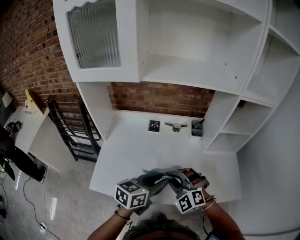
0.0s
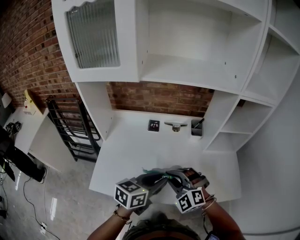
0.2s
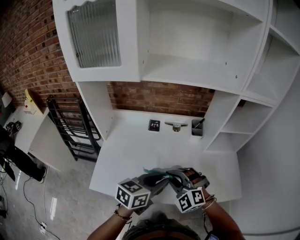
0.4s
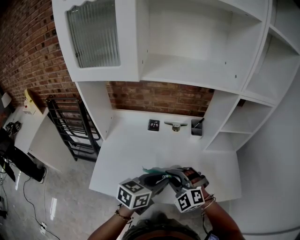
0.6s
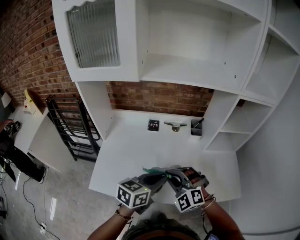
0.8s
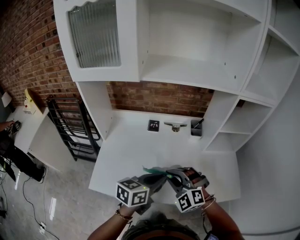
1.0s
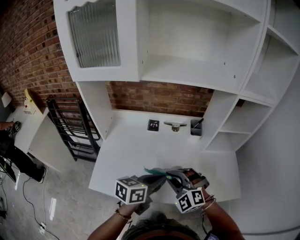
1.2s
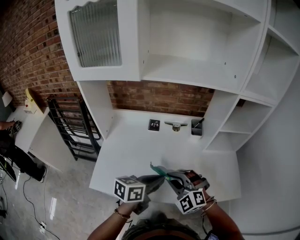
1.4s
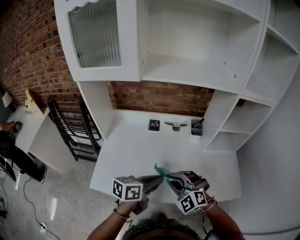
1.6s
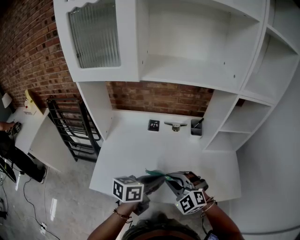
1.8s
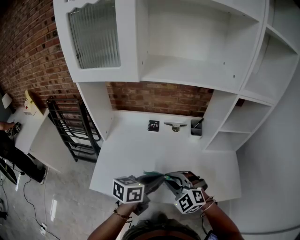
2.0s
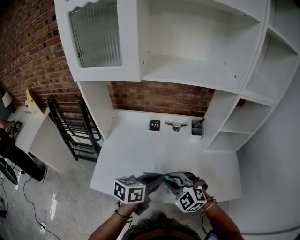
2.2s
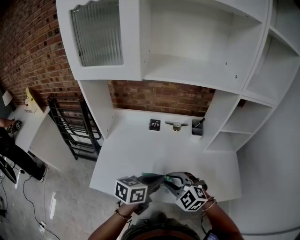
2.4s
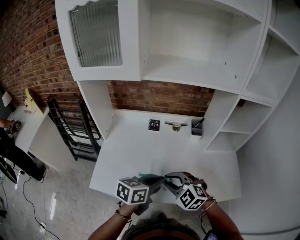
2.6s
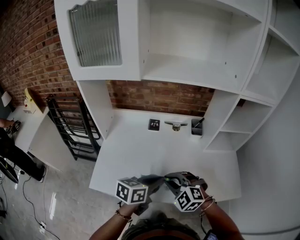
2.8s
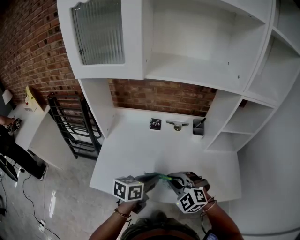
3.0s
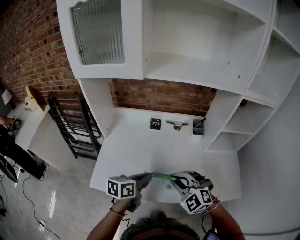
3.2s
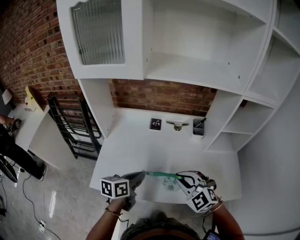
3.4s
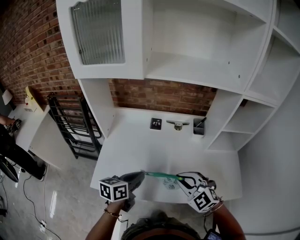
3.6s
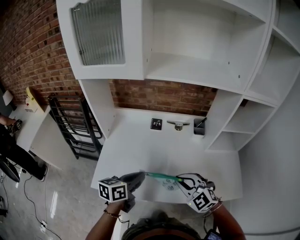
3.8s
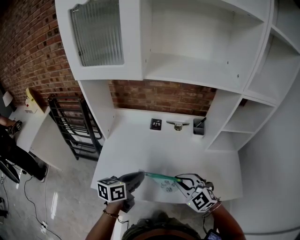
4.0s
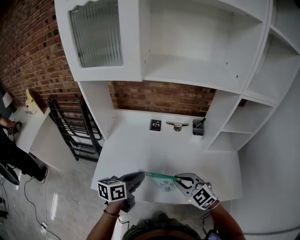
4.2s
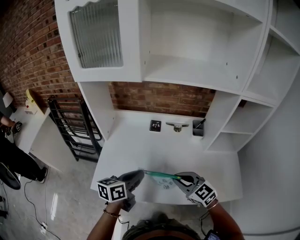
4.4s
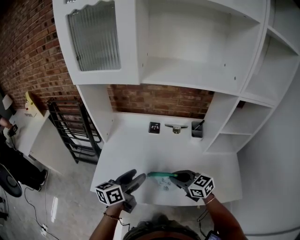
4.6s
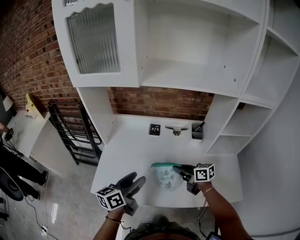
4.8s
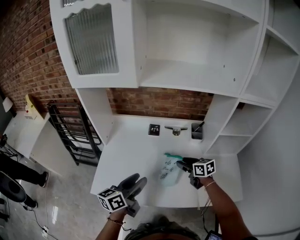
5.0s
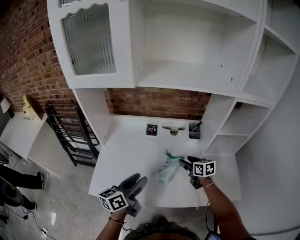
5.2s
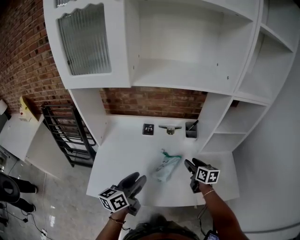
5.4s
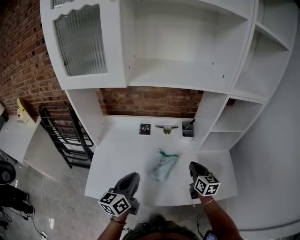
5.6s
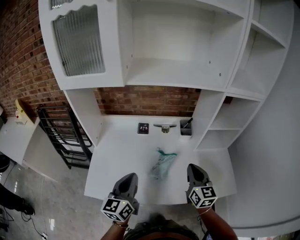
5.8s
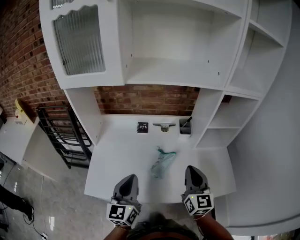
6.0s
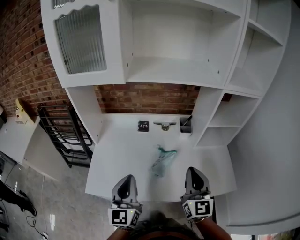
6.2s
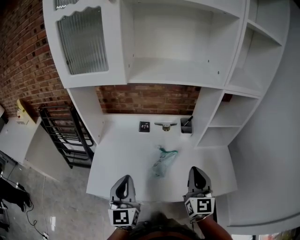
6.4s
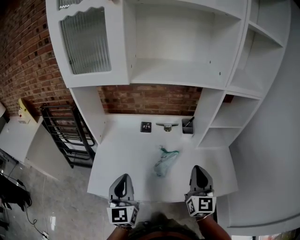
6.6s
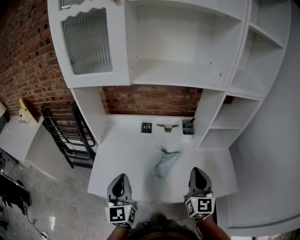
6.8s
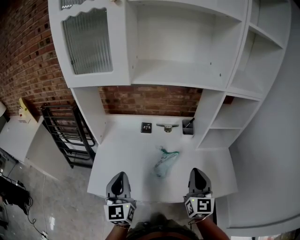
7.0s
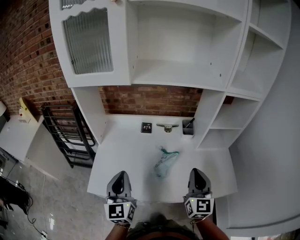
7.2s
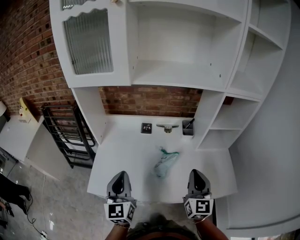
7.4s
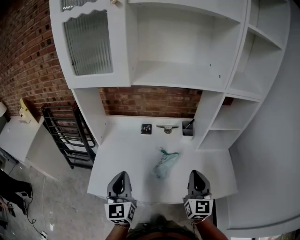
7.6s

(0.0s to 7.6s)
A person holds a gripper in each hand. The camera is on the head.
0.0s - 1.6s: The grippers move only a little.
1.6s - 3.0s: The grippers move only a little.
3.0s - 4.6s: The left gripper moves to the left, approximately 10 cm, and opens, while the right gripper changes place by approximately 5 cm, and rolls clockwise, seen from behind, by roughly 50 degrees.
4.6s - 6.0s: The right gripper is displaced upward and to the right by approximately 15 cm, rotates roughly 60 degrees, and opens, then closes once more, while the left gripper is displaced upward by approximately 5 cm, rotates about 40 degrees, and closes up.
6.0s - 7.6s: The left gripper ends up about 5 cm from where it was.

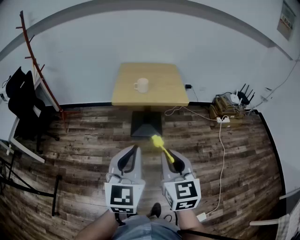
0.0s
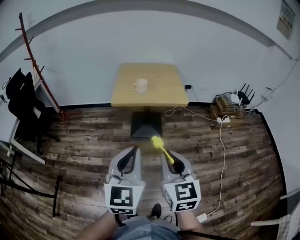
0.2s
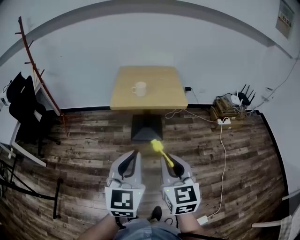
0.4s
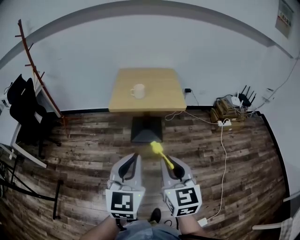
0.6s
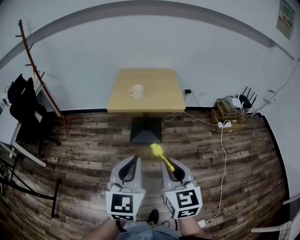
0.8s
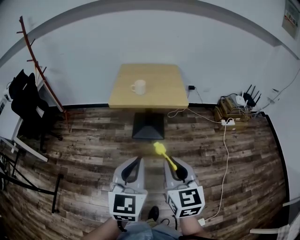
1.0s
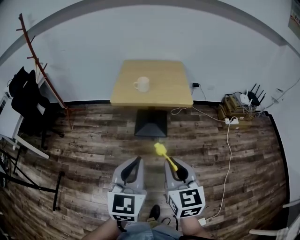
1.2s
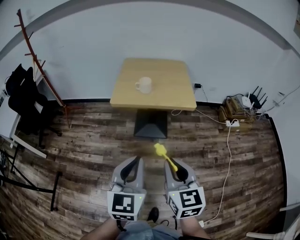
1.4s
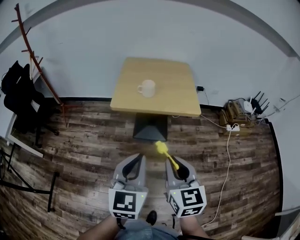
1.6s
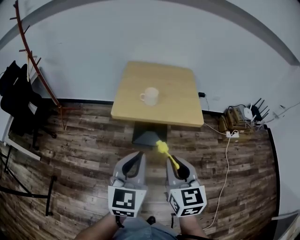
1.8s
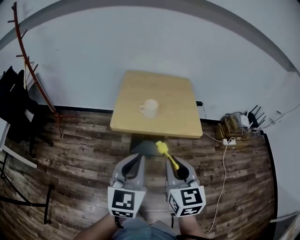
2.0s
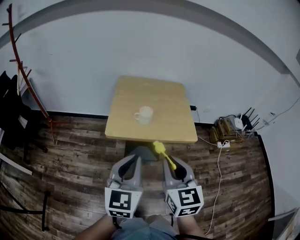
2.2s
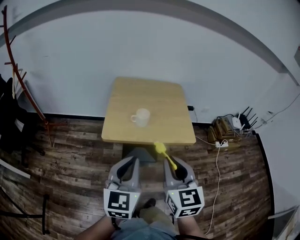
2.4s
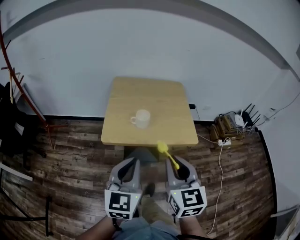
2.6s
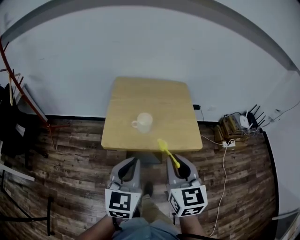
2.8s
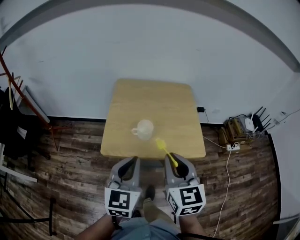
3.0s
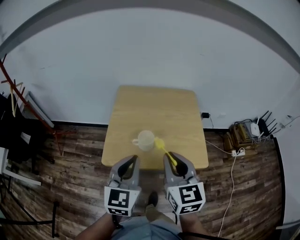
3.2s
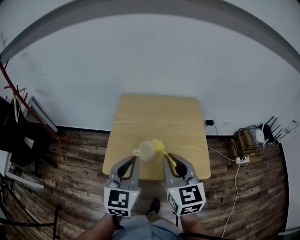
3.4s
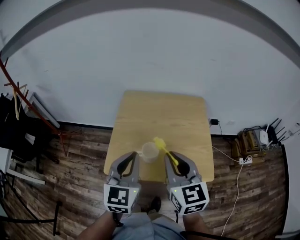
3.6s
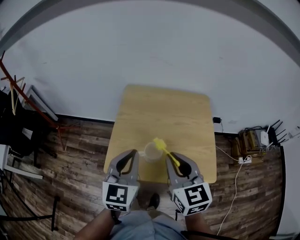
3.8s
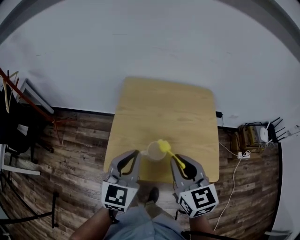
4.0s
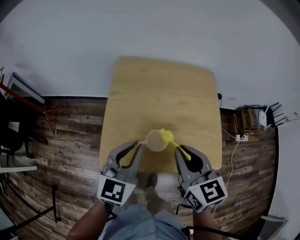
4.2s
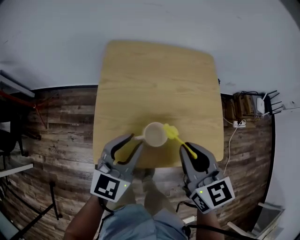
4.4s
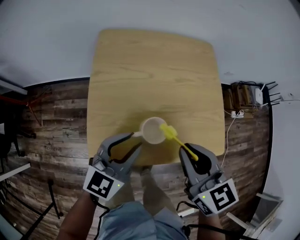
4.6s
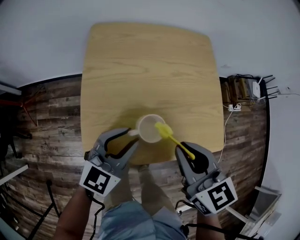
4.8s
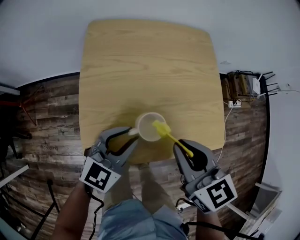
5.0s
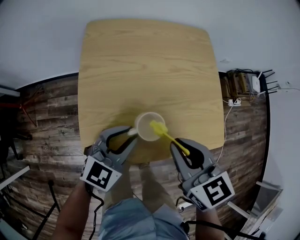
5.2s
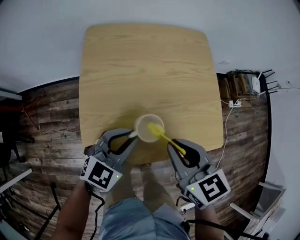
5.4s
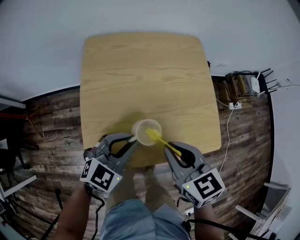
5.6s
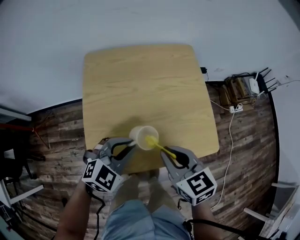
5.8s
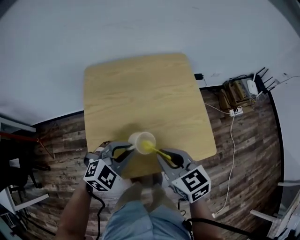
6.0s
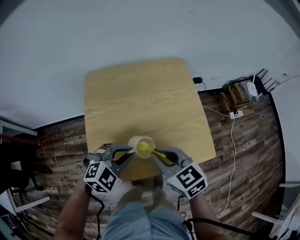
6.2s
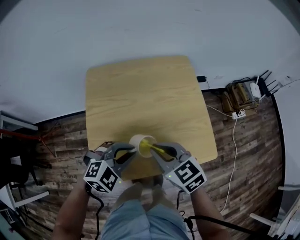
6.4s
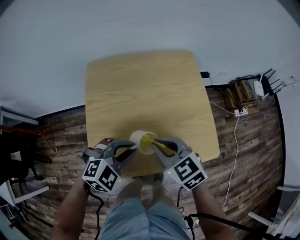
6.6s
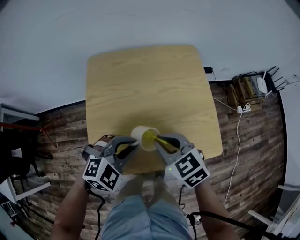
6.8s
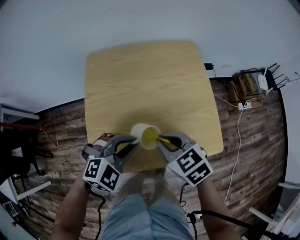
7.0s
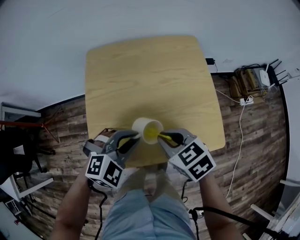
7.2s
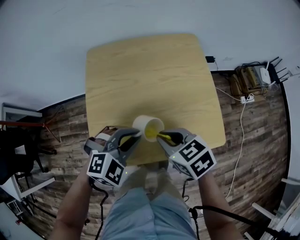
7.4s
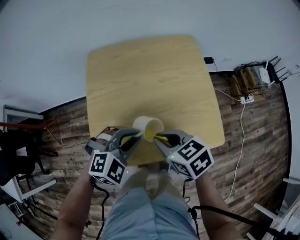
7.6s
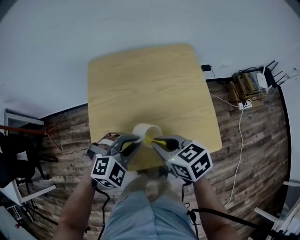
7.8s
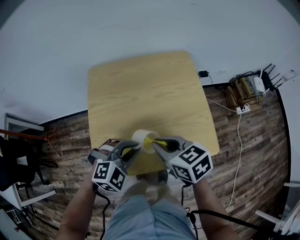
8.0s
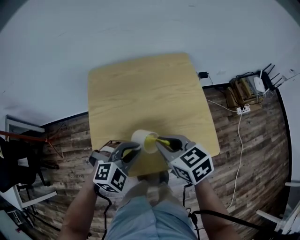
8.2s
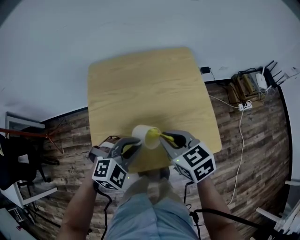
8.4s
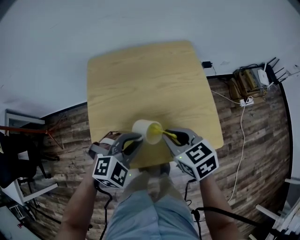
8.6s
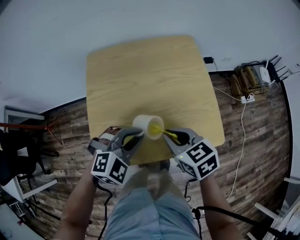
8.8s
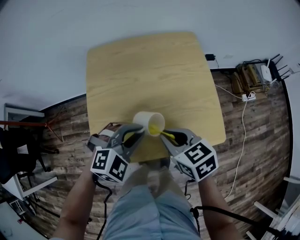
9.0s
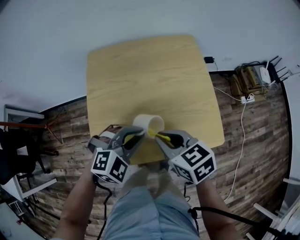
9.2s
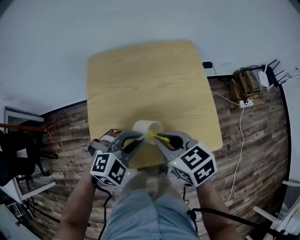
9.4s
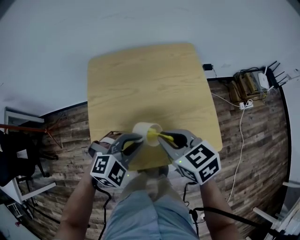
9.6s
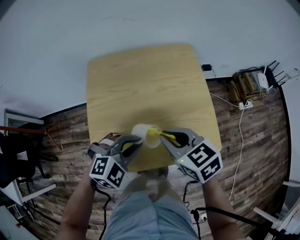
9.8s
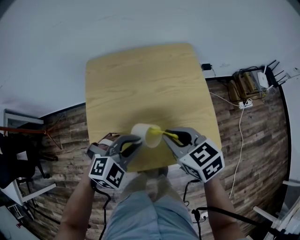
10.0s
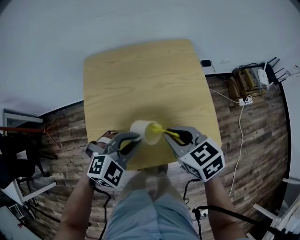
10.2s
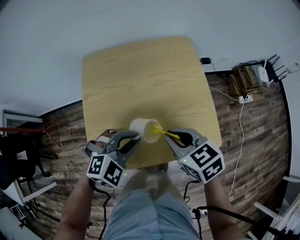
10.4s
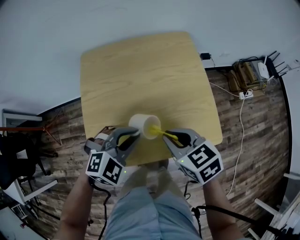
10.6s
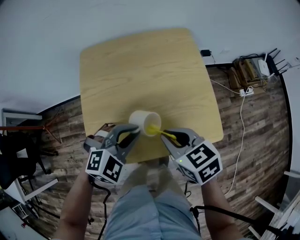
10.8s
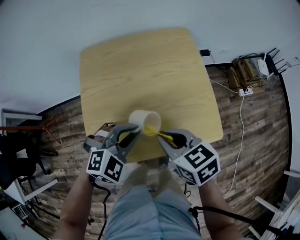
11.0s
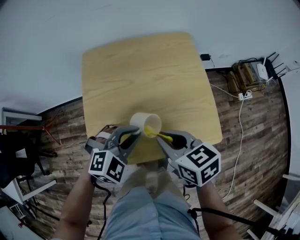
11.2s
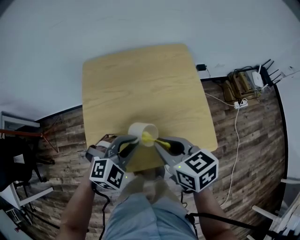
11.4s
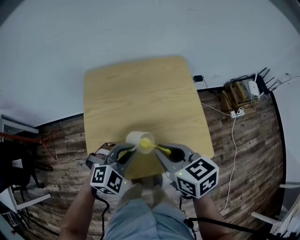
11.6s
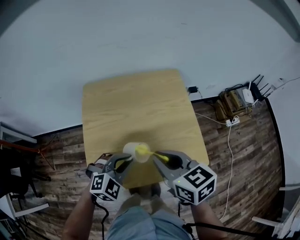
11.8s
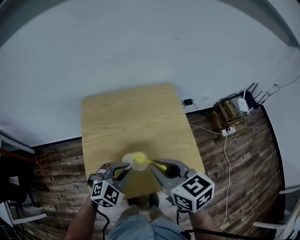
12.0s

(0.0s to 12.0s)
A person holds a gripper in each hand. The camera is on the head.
0.0s - 1.6s: The left gripper heads forward and downward, covering about 15 cm. The right gripper is displaced forward by approximately 15 cm.
1.6s - 3.0s: Both grippers travel together forward, some 30 cm.
3.0s - 4.4s: The grippers both shift forward and downward by some 20 cm. The left gripper opens up.
4.4s - 6.0s: The grippers both shift downward by some 5 cm. The left gripper rotates some 50 degrees.
7.6s - 9.0s: There are only small adjustments of the grippers.
9.0s - 10.4s: The grippers make only small movements.
10.4s - 12.0s: The right gripper shifts approximately 10 cm upward.

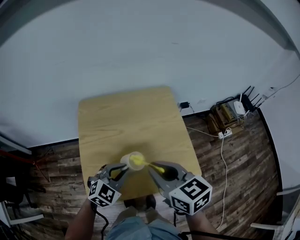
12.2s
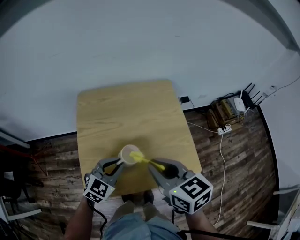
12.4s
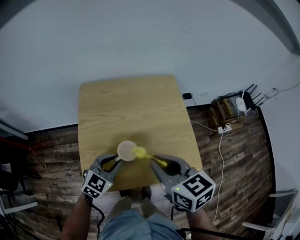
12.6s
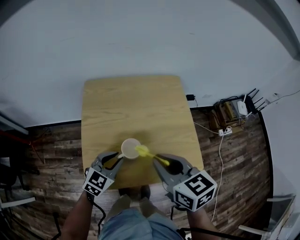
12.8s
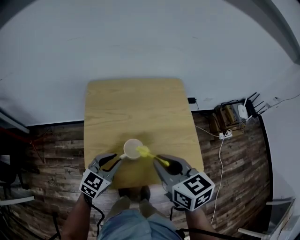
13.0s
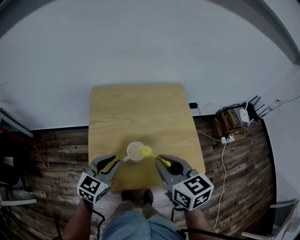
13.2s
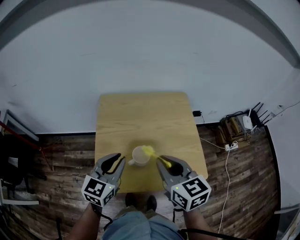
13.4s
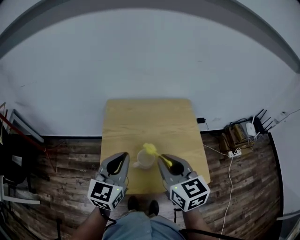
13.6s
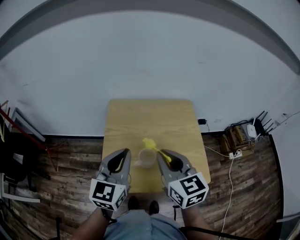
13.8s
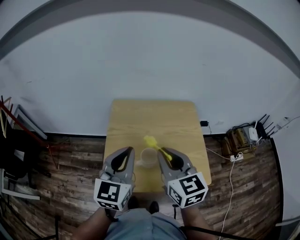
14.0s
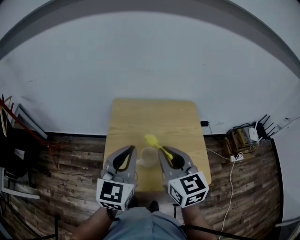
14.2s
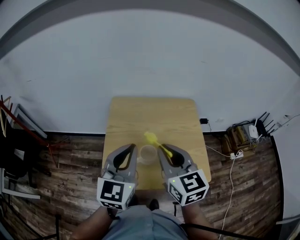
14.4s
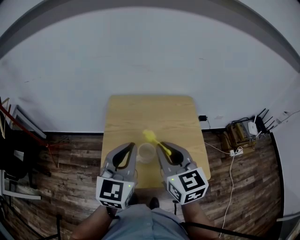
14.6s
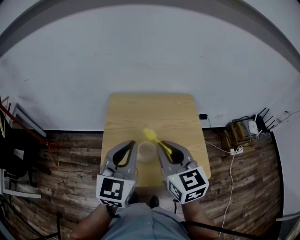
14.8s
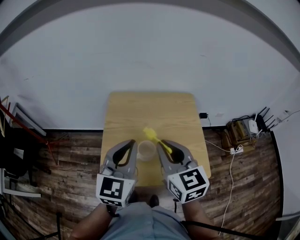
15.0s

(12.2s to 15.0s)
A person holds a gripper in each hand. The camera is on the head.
12.2s - 13.6s: The left gripper shifts roughly 20 cm upward and to the left, and swivels roughly 50 degrees.
13.6s - 15.0s: There are only small adjustments of the grippers.

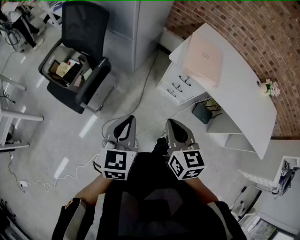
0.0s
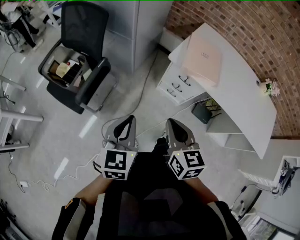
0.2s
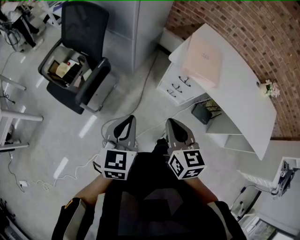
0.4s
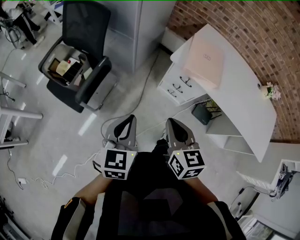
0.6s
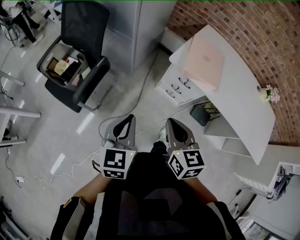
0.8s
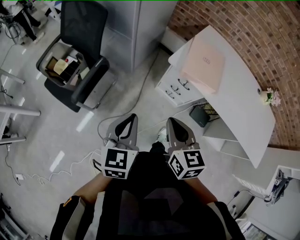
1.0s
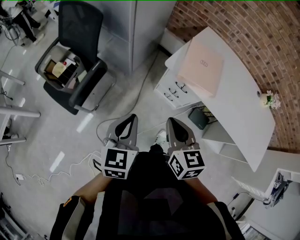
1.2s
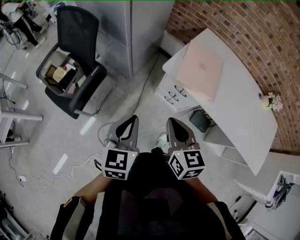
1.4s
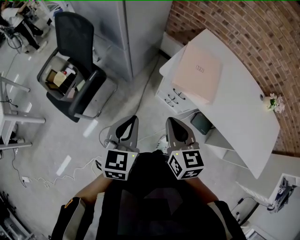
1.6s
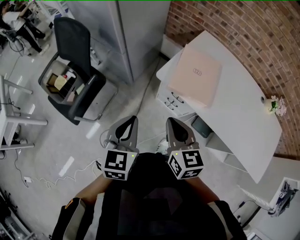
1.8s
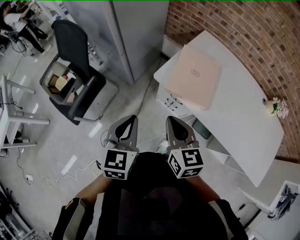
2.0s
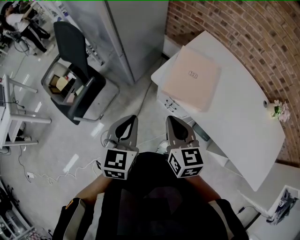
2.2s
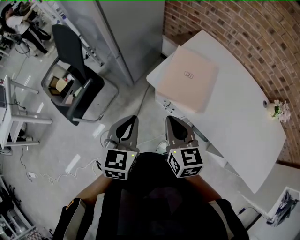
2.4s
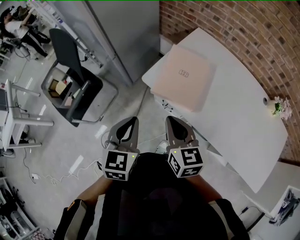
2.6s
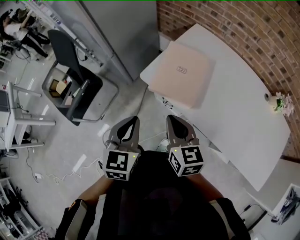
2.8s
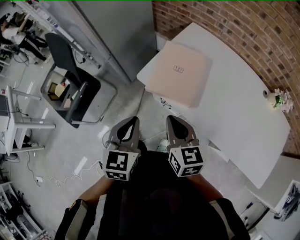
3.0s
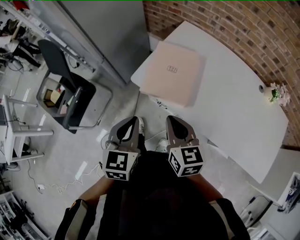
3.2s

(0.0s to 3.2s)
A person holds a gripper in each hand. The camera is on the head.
0.0s - 1.6s: Both grippers travel together forward and to the right, approximately 15 cm.
1.6s - 3.2s: Both grippers move to the right, approximately 15 cm.
